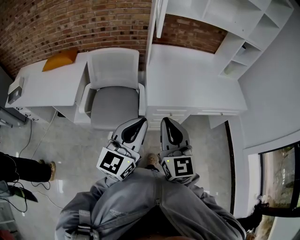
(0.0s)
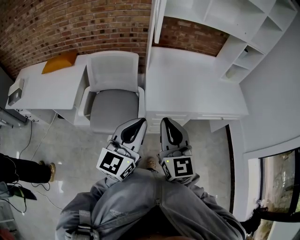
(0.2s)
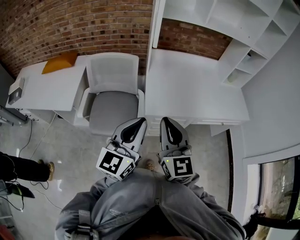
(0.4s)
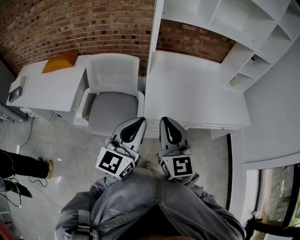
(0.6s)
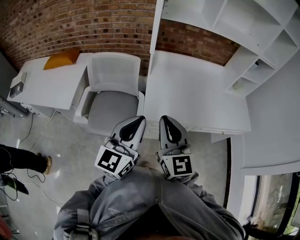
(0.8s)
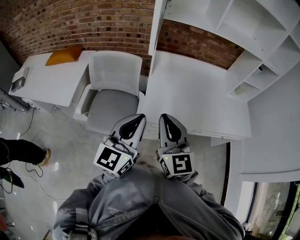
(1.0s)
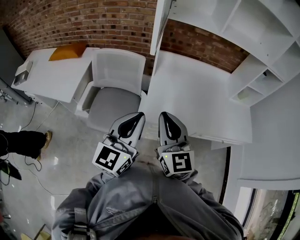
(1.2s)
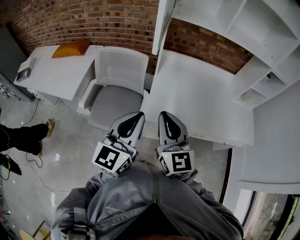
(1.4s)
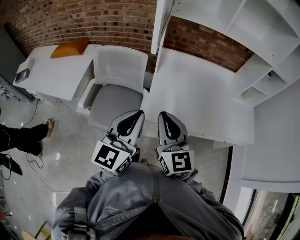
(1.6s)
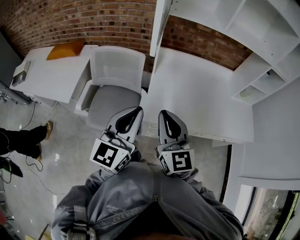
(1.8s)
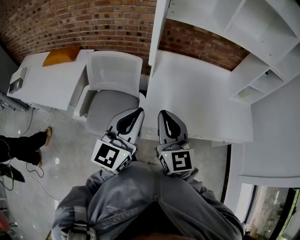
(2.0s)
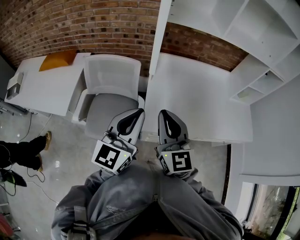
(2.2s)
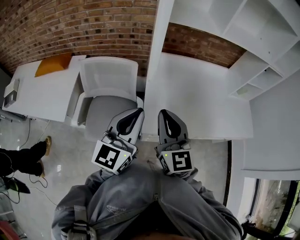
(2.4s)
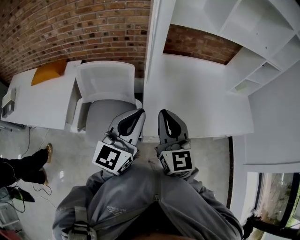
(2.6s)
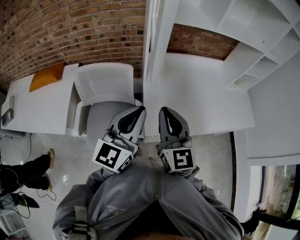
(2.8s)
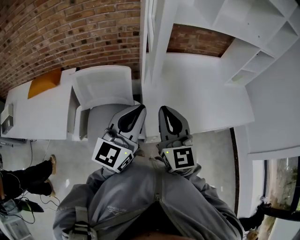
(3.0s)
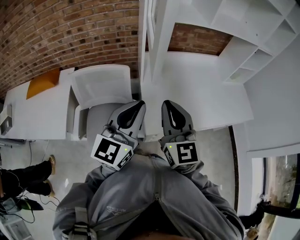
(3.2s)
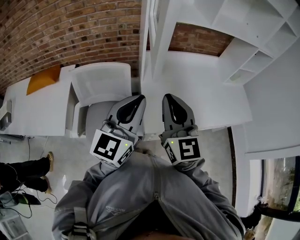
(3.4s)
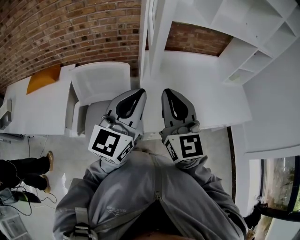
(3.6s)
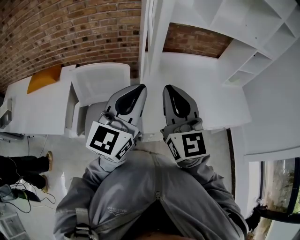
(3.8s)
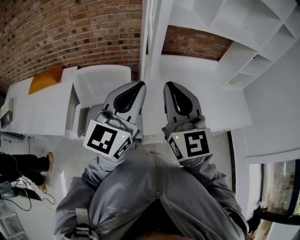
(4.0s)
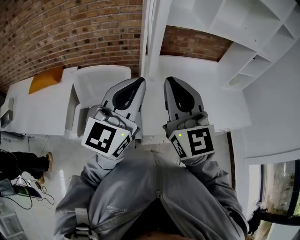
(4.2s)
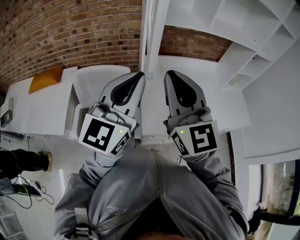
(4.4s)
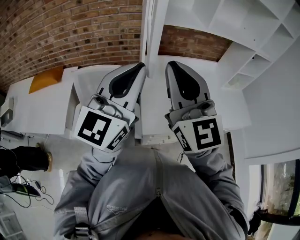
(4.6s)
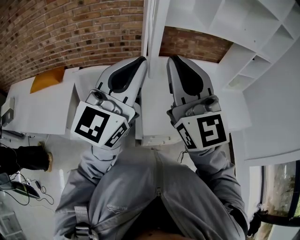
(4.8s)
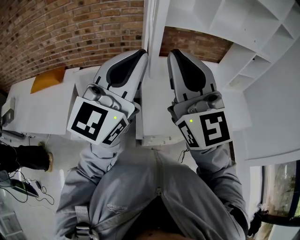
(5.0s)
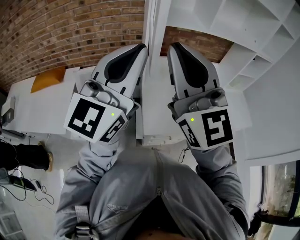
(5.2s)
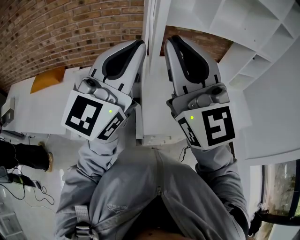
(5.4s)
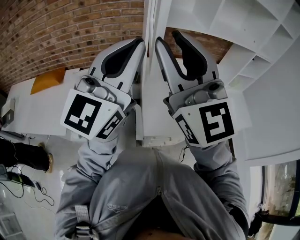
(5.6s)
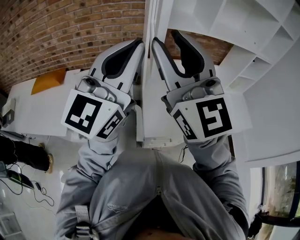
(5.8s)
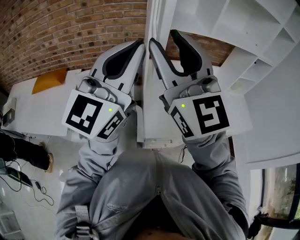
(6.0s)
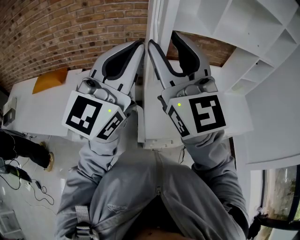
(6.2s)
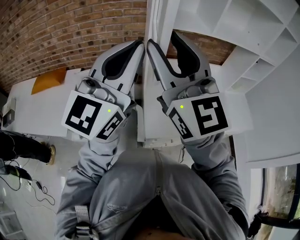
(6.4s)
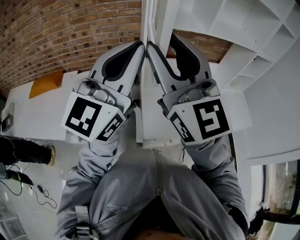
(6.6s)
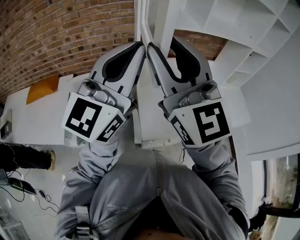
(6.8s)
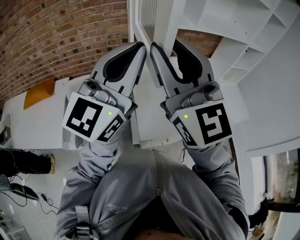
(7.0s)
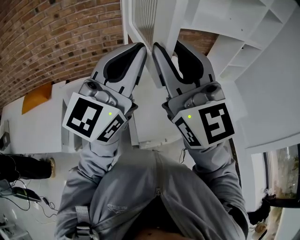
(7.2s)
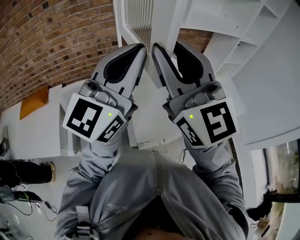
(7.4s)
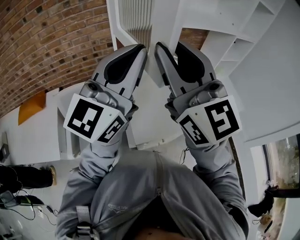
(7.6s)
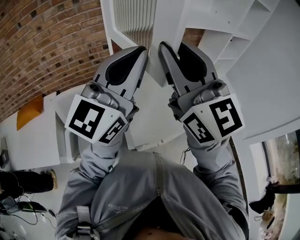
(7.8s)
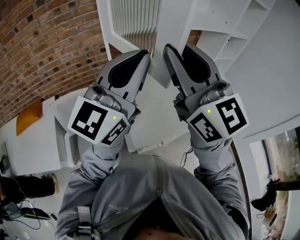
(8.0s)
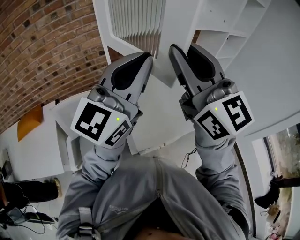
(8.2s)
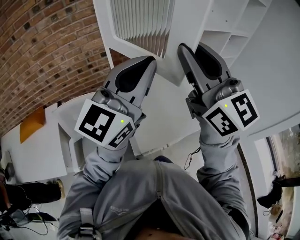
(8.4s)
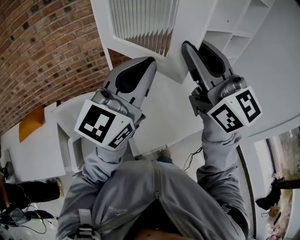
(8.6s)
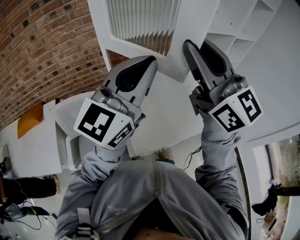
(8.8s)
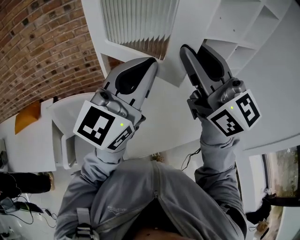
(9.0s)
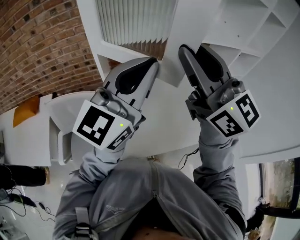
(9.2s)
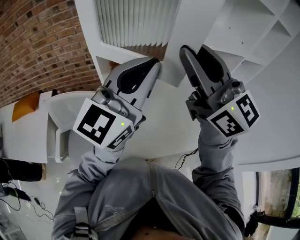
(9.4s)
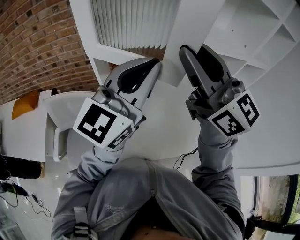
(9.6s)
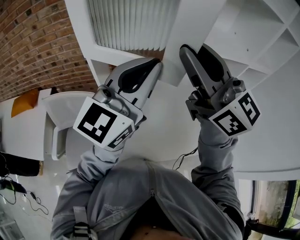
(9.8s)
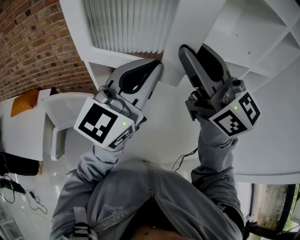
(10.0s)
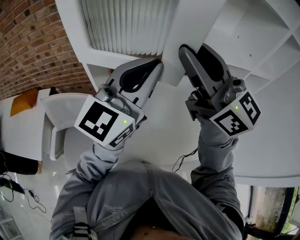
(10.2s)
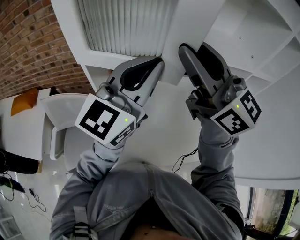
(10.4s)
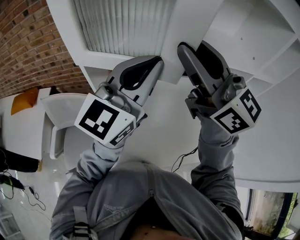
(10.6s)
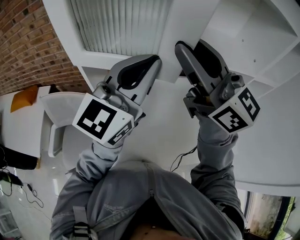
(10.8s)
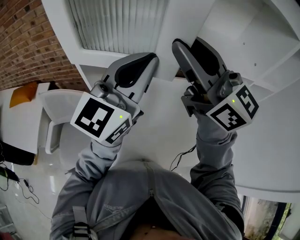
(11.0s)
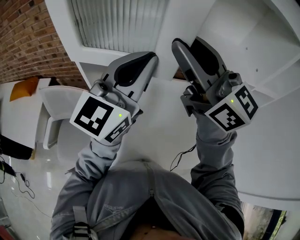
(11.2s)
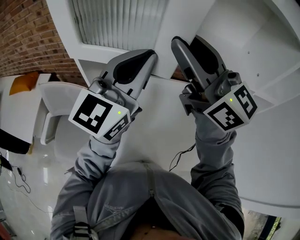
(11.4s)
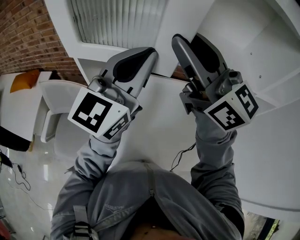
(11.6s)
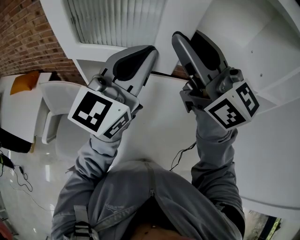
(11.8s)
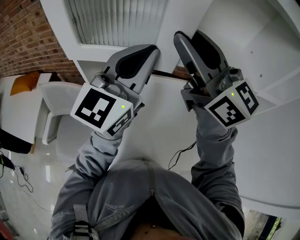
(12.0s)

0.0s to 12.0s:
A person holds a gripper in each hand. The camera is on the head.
0.0s to 1.6s: Both grippers travel together forward, roughly 15 cm.
1.6s to 3.0s: Both grippers travel together forward, some 10 cm.
3.0s to 4.4s: The grippers both shift upward by approximately 15 cm.
4.4s to 6.0s: The grippers both shift upward by about 10 cm. The right gripper opens its fingers.
6.0s to 7.6s: The left gripper travels to the right and forward by some 10 cm; the right gripper is displaced to the right by some 10 cm.
7.6s to 9.0s: The two grippers go some 10 cm forward and to the right.
9.0s to 10.4s: The left gripper shifts approximately 15 cm forward and to the right, while the right gripper shifts some 15 cm forward.
10.4s to 12.0s: The grippers both shift forward by some 5 cm.

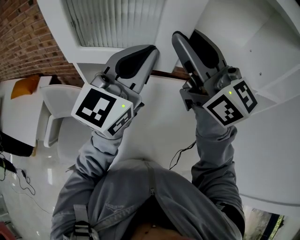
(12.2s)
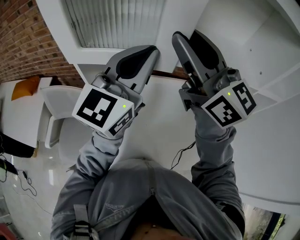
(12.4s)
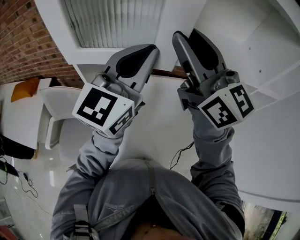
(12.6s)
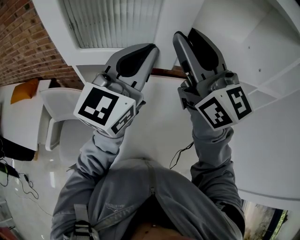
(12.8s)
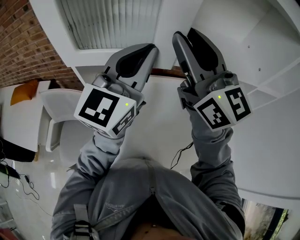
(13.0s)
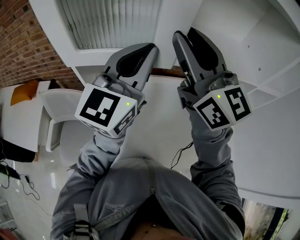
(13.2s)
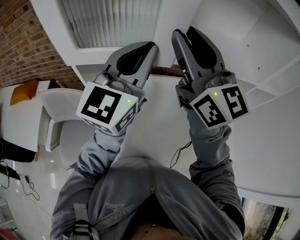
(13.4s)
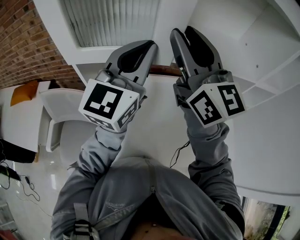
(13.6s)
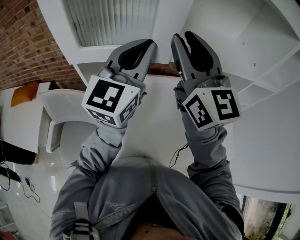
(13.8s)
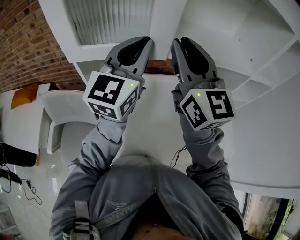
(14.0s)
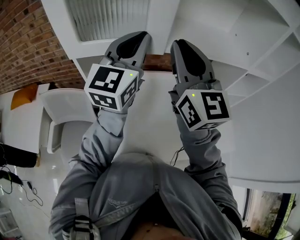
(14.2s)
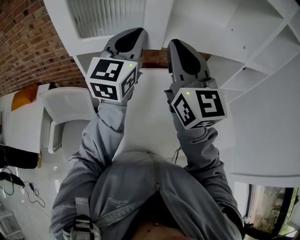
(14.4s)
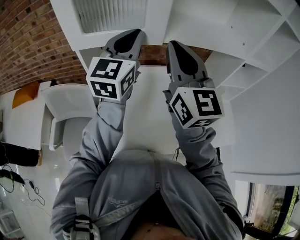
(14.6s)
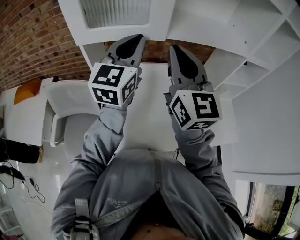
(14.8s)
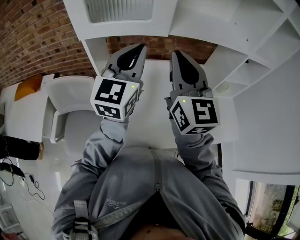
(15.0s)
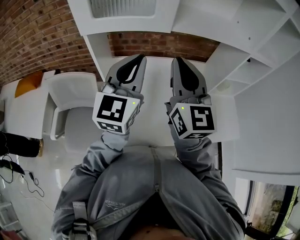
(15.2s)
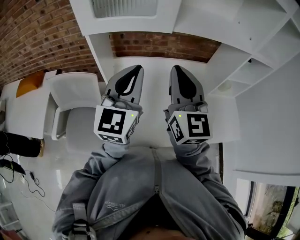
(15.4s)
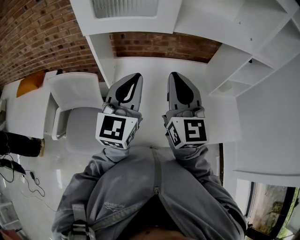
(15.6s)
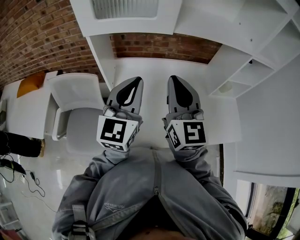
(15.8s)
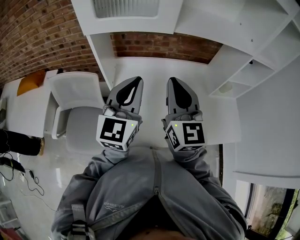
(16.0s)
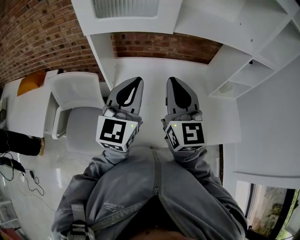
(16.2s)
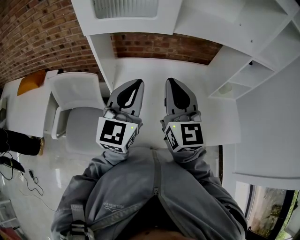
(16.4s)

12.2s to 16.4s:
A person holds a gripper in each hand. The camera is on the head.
12.2s to 13.6s: The grippers make only small movements.
13.6s to 15.0s: The grippers both shift backward and downward by roughly 10 cm. The right gripper closes.
15.0s to 16.4s: The right gripper travels downward by about 10 cm. The left gripper moves backward and downward, roughly 10 cm.

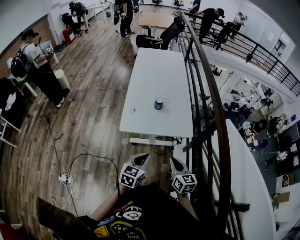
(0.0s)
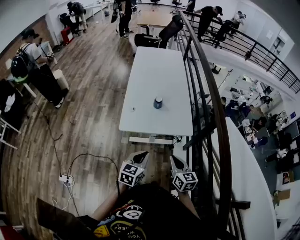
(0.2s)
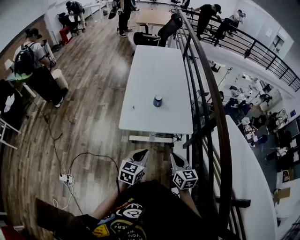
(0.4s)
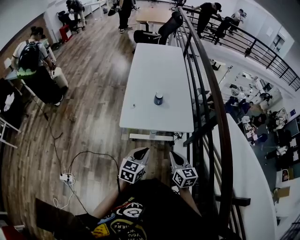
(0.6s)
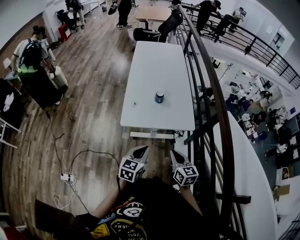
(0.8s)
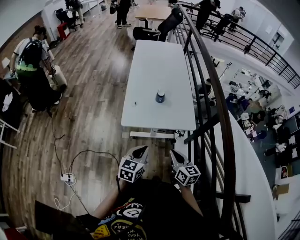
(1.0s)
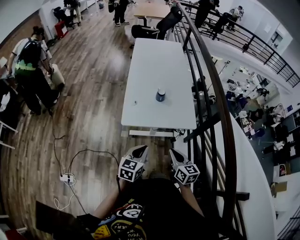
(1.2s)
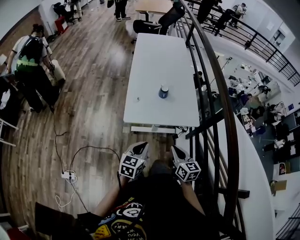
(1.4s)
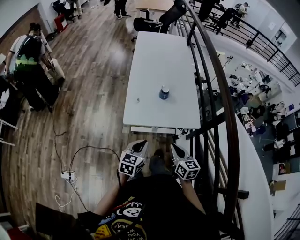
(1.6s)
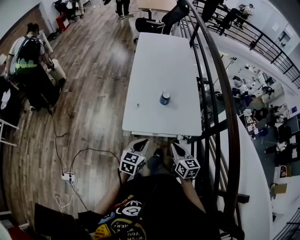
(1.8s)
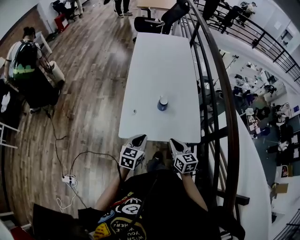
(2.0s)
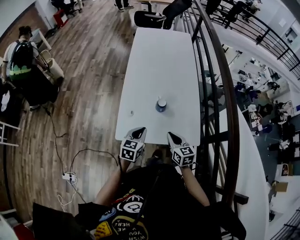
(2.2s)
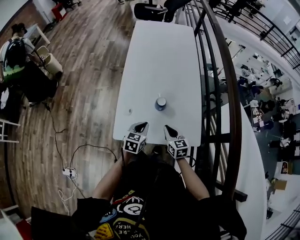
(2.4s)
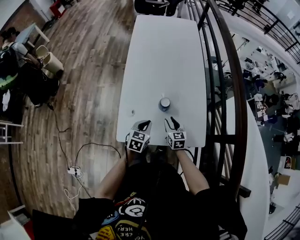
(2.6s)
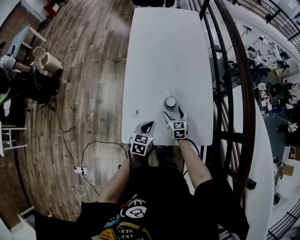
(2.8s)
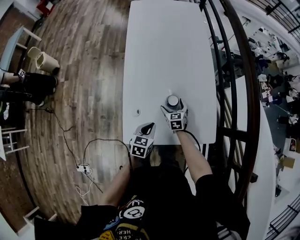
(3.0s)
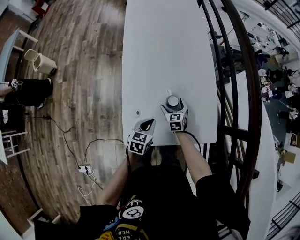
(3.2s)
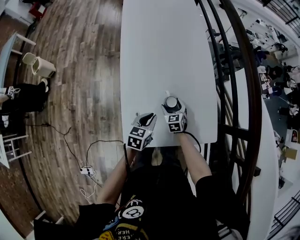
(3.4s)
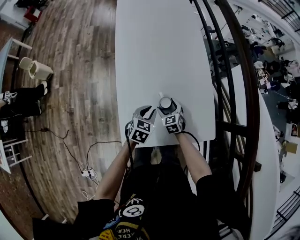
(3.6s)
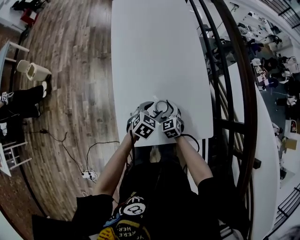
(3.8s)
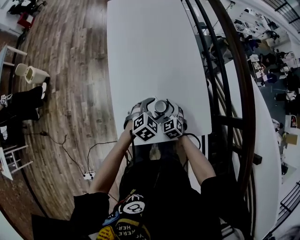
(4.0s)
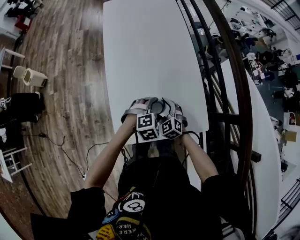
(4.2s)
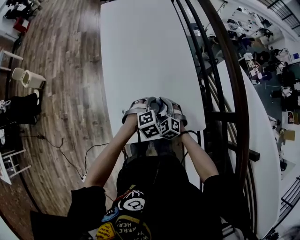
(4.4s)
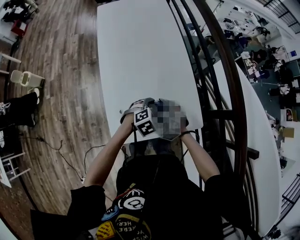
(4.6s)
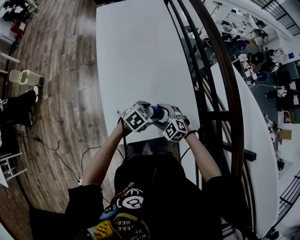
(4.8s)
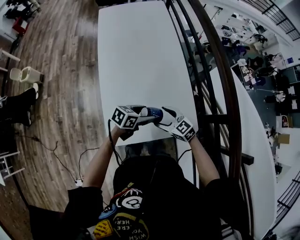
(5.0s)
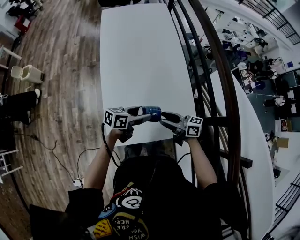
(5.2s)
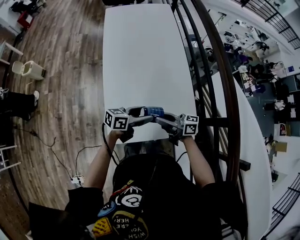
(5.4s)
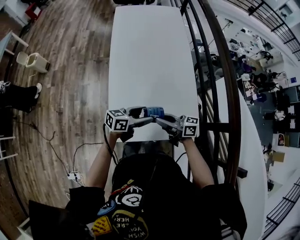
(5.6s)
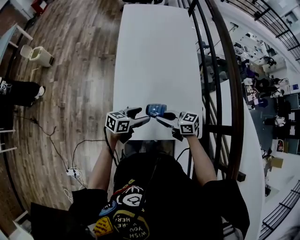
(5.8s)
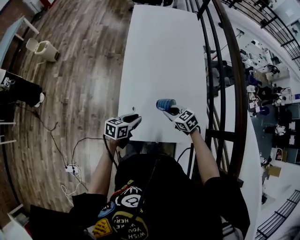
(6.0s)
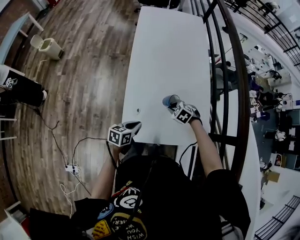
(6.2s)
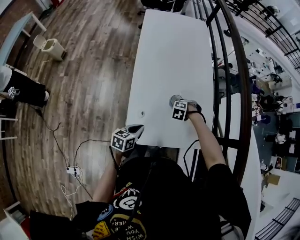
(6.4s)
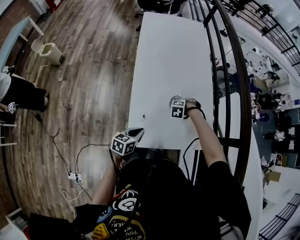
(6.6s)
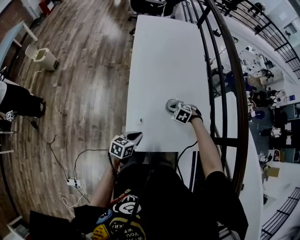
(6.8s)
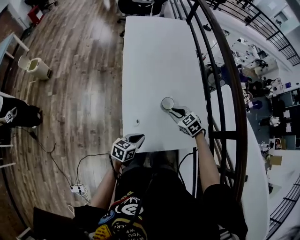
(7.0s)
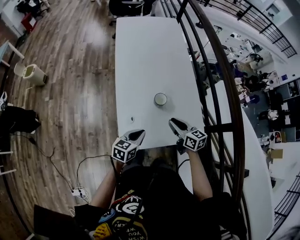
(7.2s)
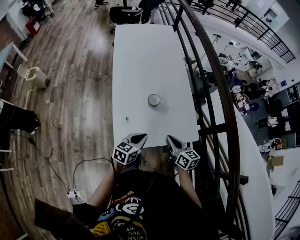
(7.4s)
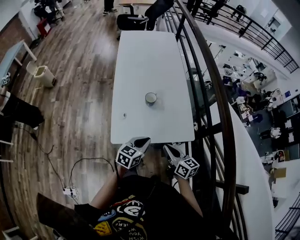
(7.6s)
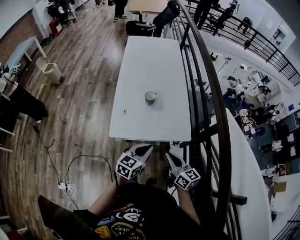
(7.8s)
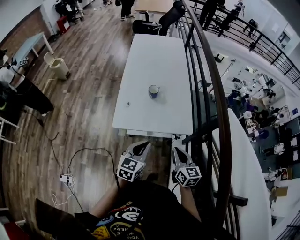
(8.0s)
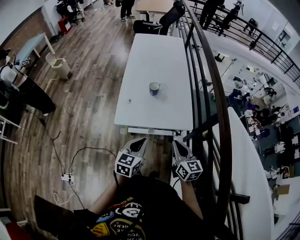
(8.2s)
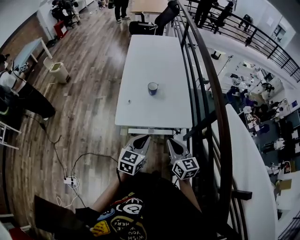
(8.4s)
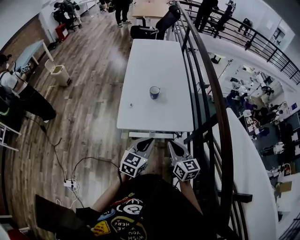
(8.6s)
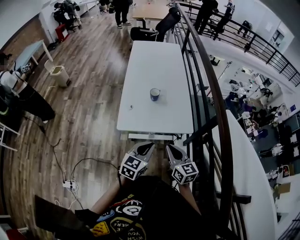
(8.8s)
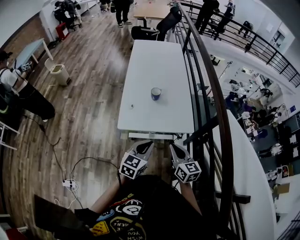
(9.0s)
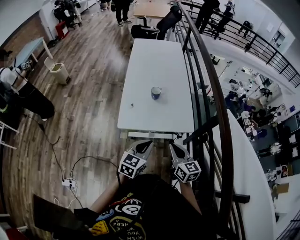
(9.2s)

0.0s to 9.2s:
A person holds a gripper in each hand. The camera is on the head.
0.0s to 1.6s: Both grippers travel together to the left and forward, about 10 cm.
1.6s to 3.0s: The grippers both shift forward and downward by about 40 cm. The right gripper turns by about 30 degrees, and opens up.
3.0s to 4.6s: The left gripper heads to the right and forward, covering approximately 15 cm, rolls clockwise, seen from behind, by about 50 degrees, and opens, while the right gripper heads upward and backward, covering approximately 10 cm, and swivels approximately 40 degrees.
4.6s to 6.2s: The right gripper moves some 15 cm upward and comes back, changes its angle by about 30 degrees, and closes its fingers; the left gripper reaches some 5 cm upward, then returns, rotates around the line of its fingers by some 60 degrees, counterclockwise from behind, and closes its fingers.
6.2s to 7.6s: The right gripper ends up roughly 30 cm from where it was, and angles its fingers upward, by about 50 degrees; the left gripper changes place by some 20 cm, and changes its angle by some 20 degrees.
7.6s to 9.2s: Both grippers move backward and upward, roughly 15 cm.
